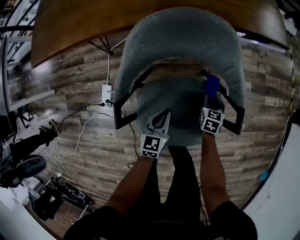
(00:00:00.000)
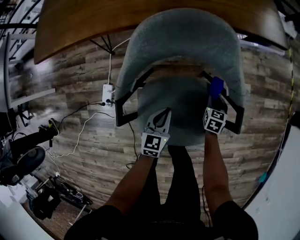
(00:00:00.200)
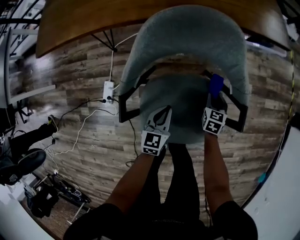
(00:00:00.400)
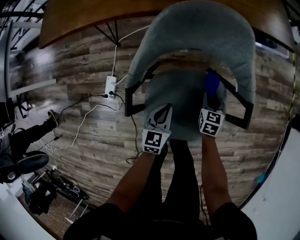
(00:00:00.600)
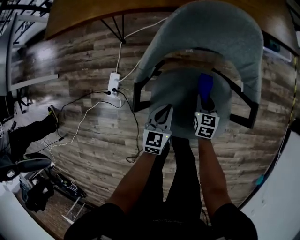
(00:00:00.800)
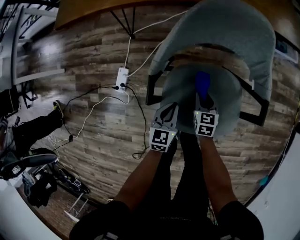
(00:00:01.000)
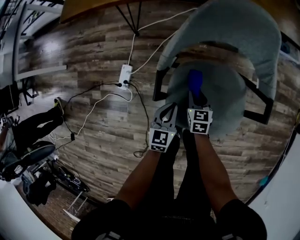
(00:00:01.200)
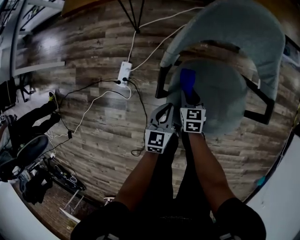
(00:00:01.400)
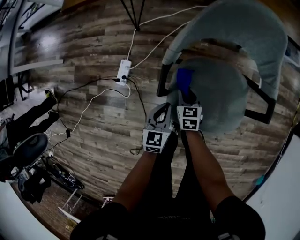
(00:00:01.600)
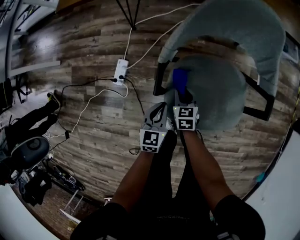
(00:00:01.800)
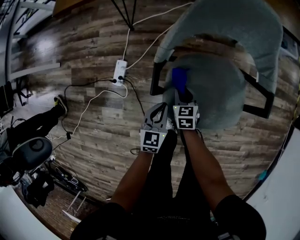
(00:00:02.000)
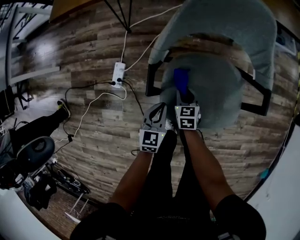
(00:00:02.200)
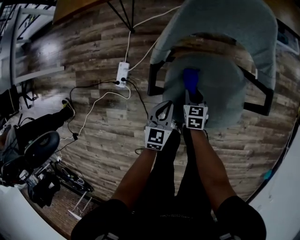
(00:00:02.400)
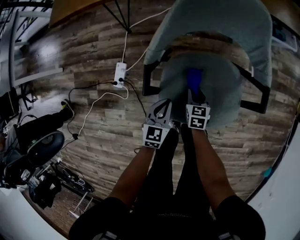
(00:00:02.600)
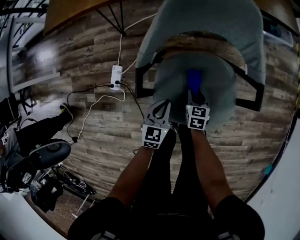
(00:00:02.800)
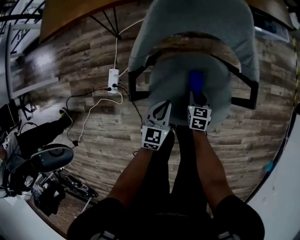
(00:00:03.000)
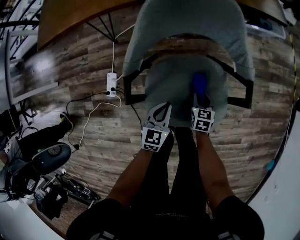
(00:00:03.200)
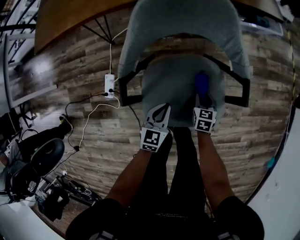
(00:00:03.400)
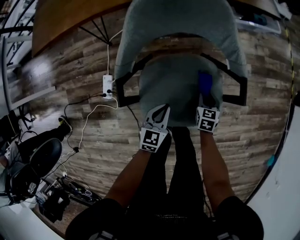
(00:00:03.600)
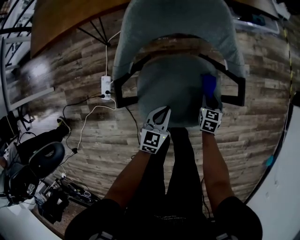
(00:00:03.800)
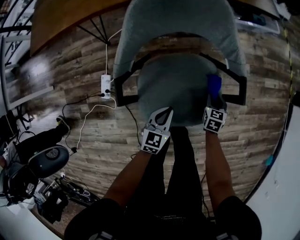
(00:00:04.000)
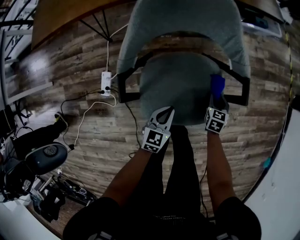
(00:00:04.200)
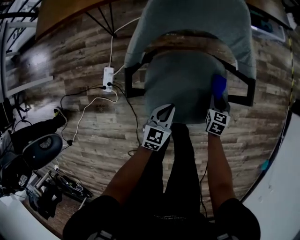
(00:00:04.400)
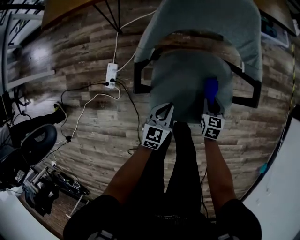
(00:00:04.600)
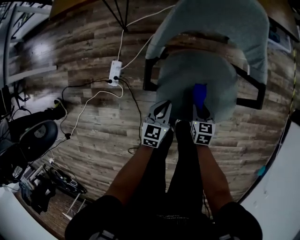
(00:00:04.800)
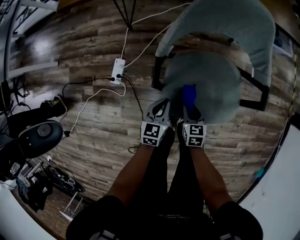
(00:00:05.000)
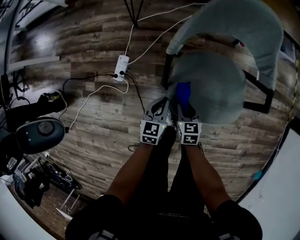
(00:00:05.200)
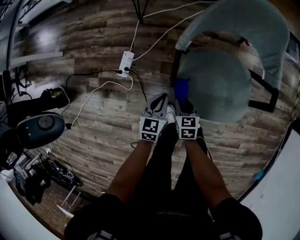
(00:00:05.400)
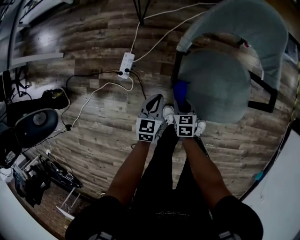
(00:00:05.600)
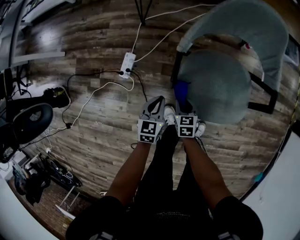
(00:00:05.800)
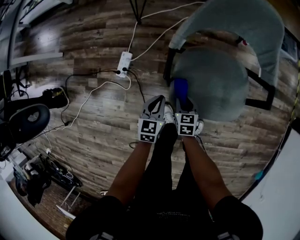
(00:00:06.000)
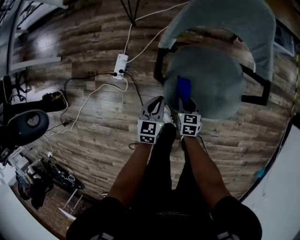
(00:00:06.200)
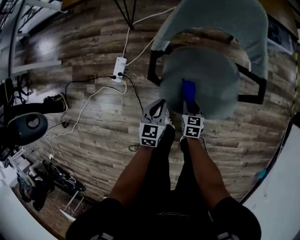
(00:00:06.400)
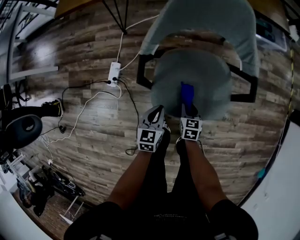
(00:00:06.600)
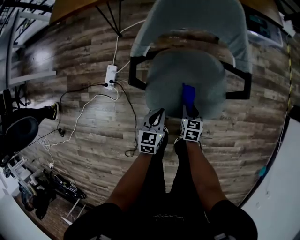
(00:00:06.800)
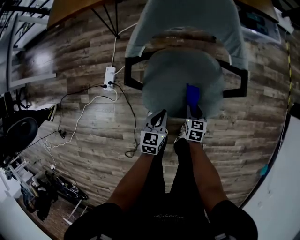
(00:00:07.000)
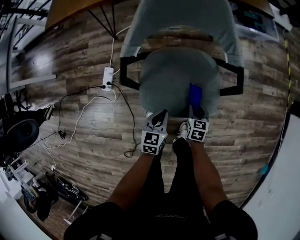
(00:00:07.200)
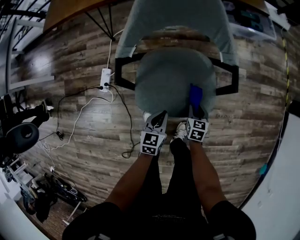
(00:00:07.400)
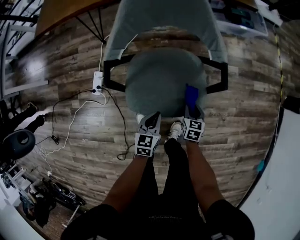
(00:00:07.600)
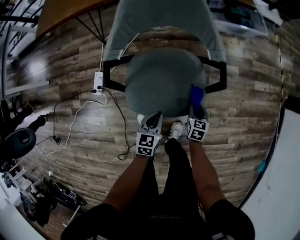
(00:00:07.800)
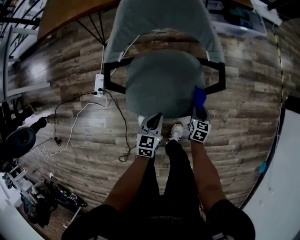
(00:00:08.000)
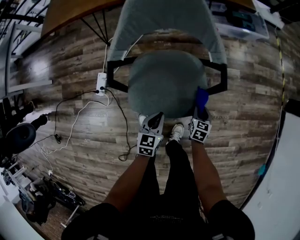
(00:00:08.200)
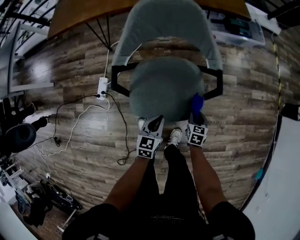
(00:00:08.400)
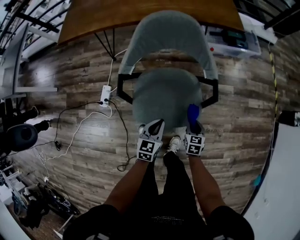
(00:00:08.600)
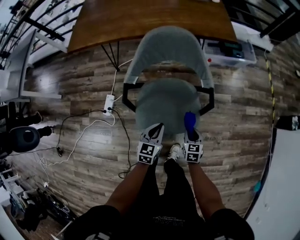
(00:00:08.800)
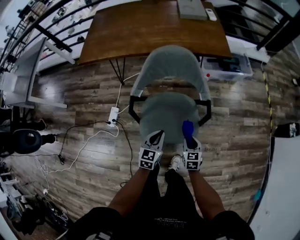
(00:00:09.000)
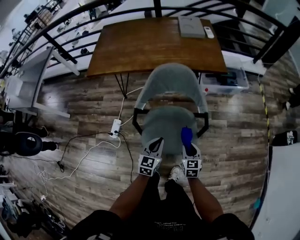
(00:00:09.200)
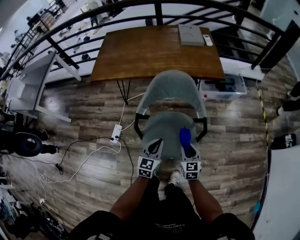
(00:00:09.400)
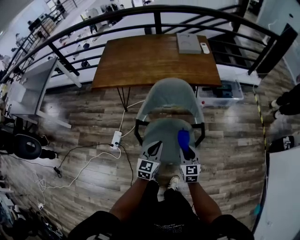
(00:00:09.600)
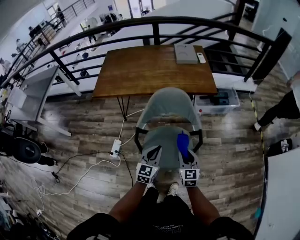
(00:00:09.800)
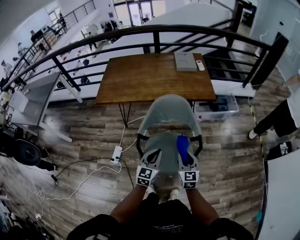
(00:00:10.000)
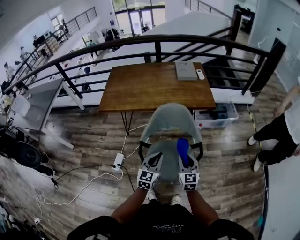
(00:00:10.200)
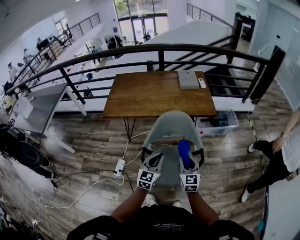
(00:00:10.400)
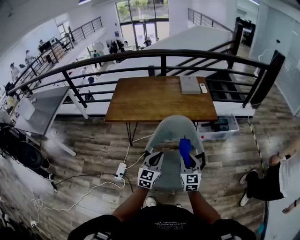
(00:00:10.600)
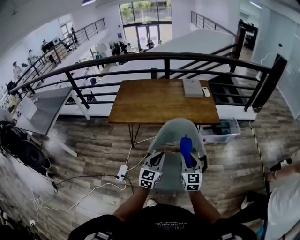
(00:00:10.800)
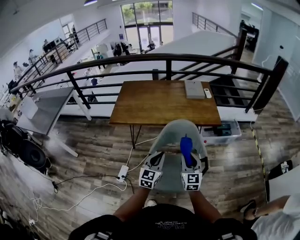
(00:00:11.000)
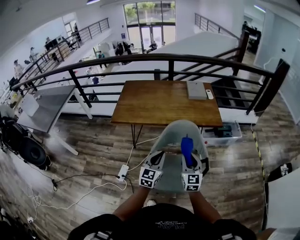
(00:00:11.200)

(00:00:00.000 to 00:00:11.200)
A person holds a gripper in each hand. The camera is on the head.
00:00:00.000 - 00:00:01.600: The right gripper travels to the left and backward by roughly 30 cm, and swivels roughly 20 degrees; the left gripper goes roughly 20 cm to the left and backward.
00:00:01.600 - 00:00:03.200: The left gripper heads to the right, covering approximately 10 cm. The right gripper travels to the right by approximately 20 cm.
00:00:03.200 - 00:00:04.800: The left gripper is displaced backward and to the left by approximately 10 cm. The right gripper moves backward, some 10 cm, and travels to the right and back again, roughly 10 cm each way.
00:00:04.800 - 00:00:06.400: The right gripper reaches approximately 20 cm to the left, then returns; the left gripper goes to the left and returns, roughly 15 cm each way.
00:00:06.400 - 00:00:08.000: The two grippers go roughly 20 cm to the right.
00:00:08.000 - 00:00:09.600: The two grippers go about 30 cm upward. The left gripper turns by roughly 20 degrees. Meanwhile the right gripper changes its angle by about 30 degrees.
00:00:09.600 - 00:00:11.200: Both grippers travel together upward and to the left, some 20 cm. The right gripper rotates some 20 degrees.

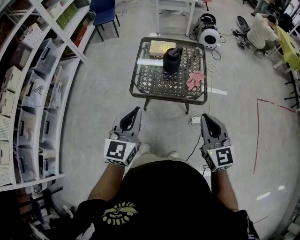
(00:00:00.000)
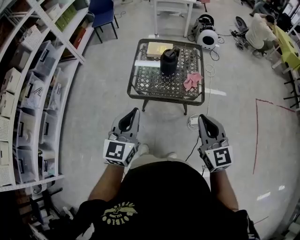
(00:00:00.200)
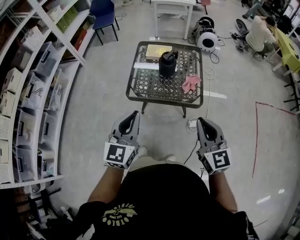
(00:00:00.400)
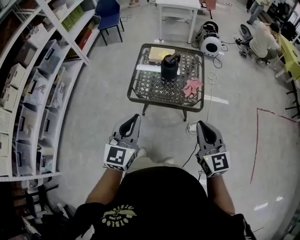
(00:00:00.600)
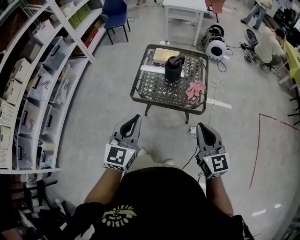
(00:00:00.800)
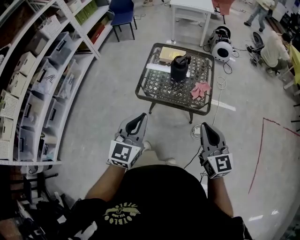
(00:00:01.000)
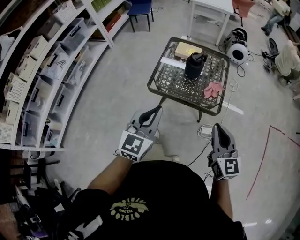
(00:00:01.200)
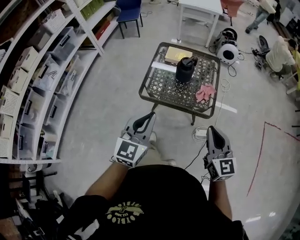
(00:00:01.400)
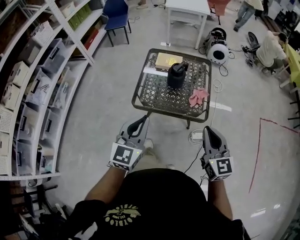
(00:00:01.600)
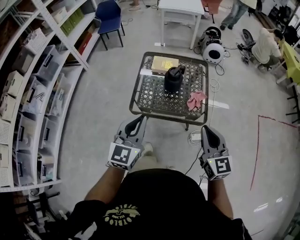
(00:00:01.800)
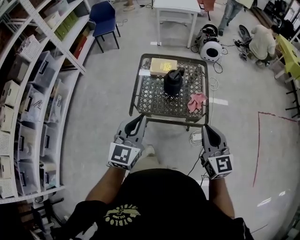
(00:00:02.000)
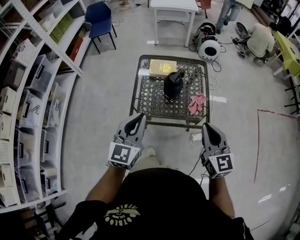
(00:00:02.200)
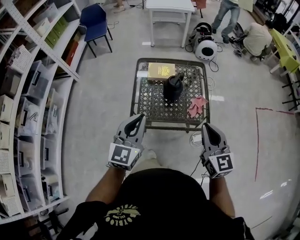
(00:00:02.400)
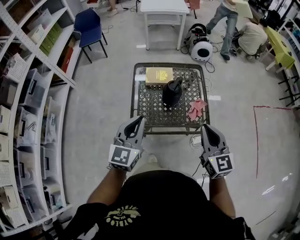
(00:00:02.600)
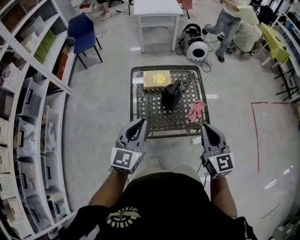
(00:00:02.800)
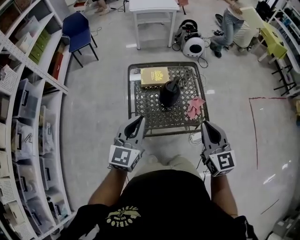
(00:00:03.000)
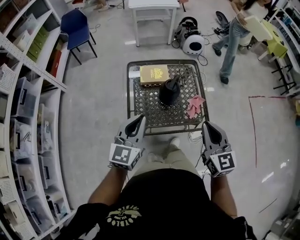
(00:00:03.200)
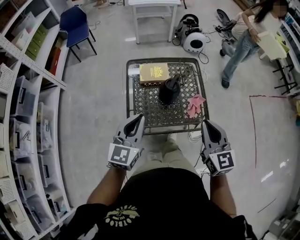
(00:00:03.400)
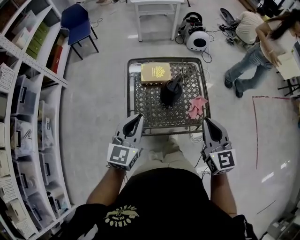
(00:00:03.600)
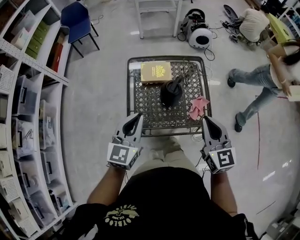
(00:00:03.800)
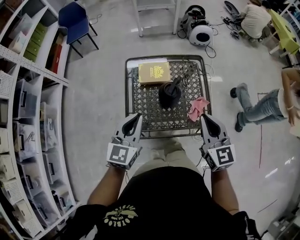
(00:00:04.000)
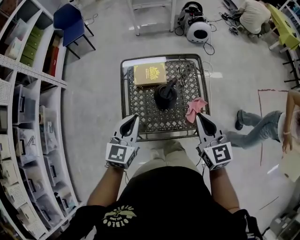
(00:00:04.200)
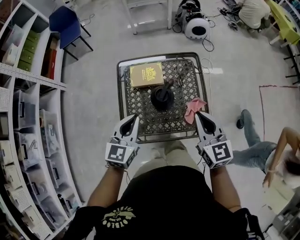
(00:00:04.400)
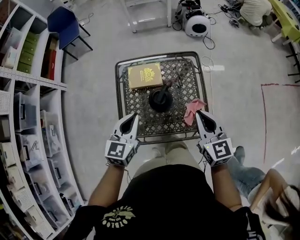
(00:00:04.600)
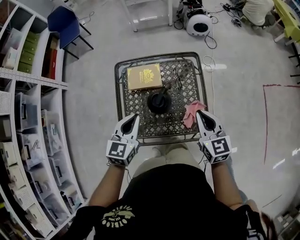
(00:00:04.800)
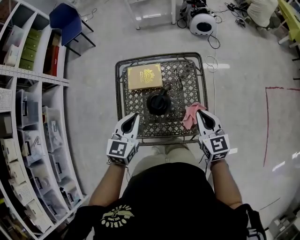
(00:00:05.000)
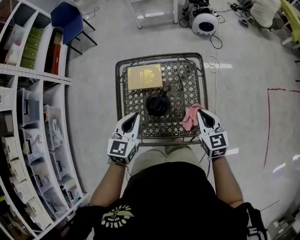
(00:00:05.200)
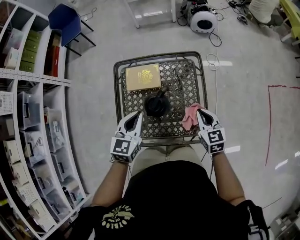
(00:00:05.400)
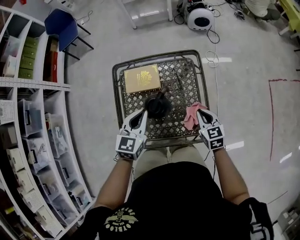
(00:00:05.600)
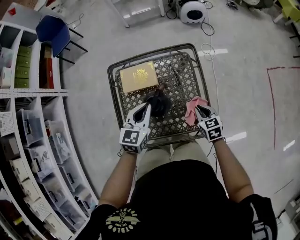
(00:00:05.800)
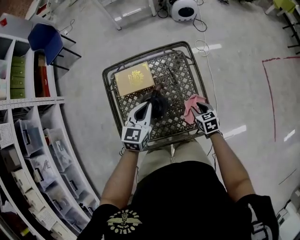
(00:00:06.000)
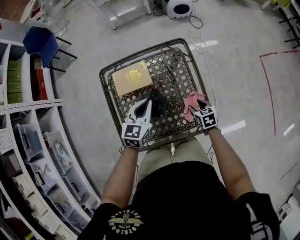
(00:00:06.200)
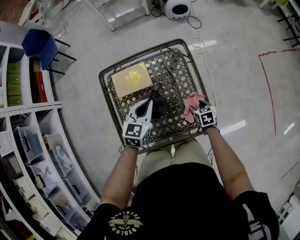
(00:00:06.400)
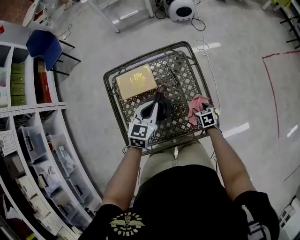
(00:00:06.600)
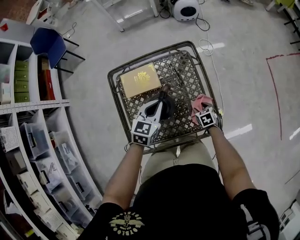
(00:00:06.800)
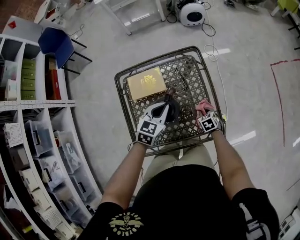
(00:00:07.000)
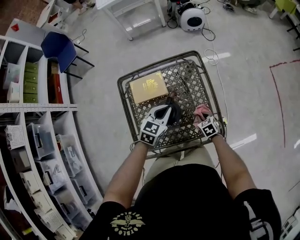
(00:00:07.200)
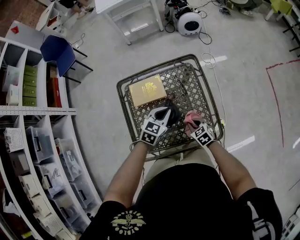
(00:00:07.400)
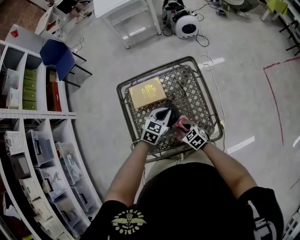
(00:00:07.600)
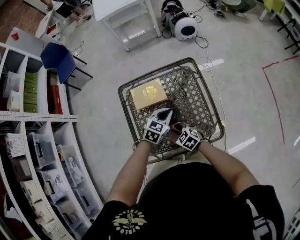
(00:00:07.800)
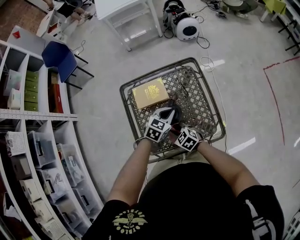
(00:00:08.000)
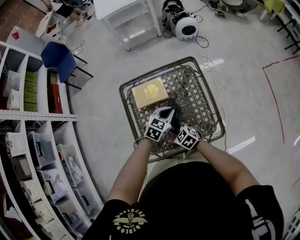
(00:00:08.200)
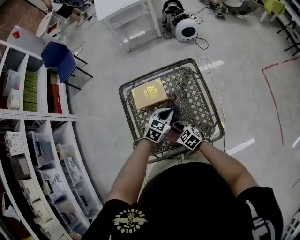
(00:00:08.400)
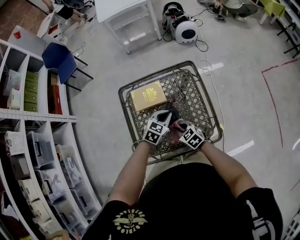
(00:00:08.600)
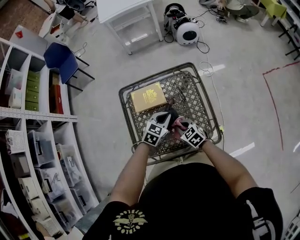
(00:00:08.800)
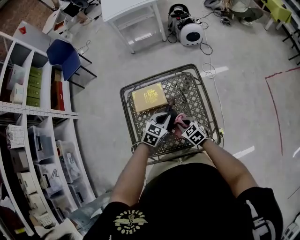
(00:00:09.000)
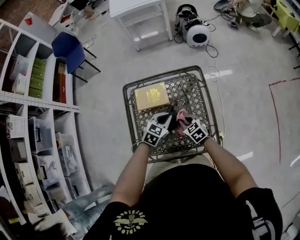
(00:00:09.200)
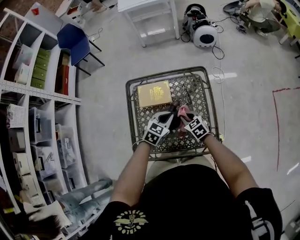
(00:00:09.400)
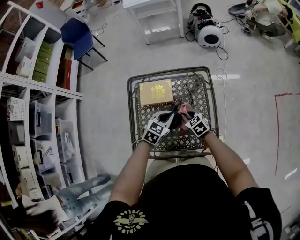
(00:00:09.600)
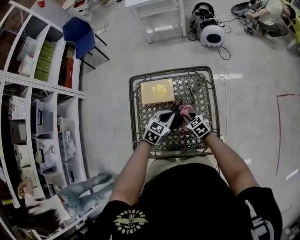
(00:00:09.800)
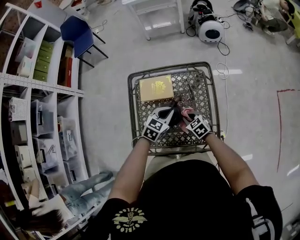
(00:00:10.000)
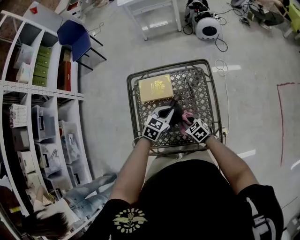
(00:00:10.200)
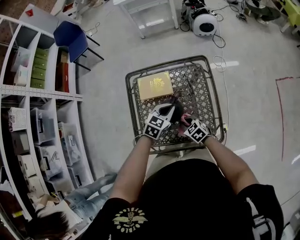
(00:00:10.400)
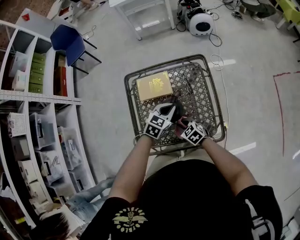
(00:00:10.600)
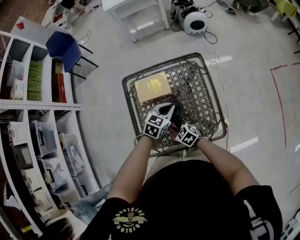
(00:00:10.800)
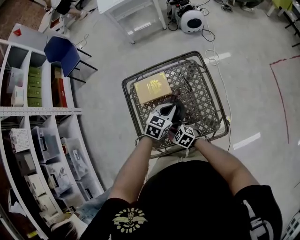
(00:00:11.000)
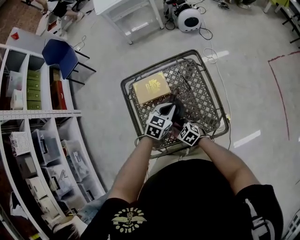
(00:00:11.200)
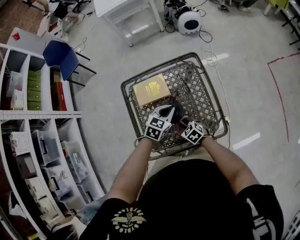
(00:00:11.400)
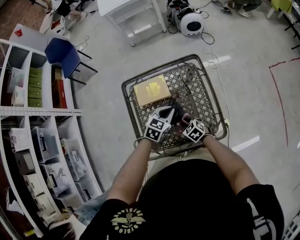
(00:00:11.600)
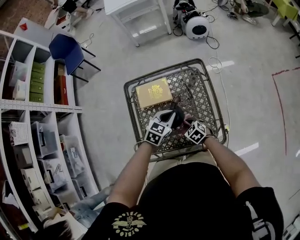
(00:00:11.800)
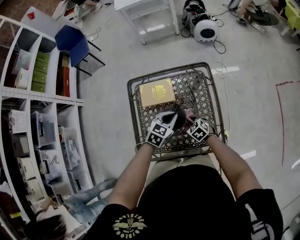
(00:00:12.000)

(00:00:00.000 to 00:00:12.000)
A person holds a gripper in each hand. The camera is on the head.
00:00:00.000 - 00:00:01.600: The right gripper ends up about 5 cm from where it was. The left gripper ends up some 5 cm from where it was.
00:00:01.600 - 00:00:03.000: The grippers both shift forward and to the left by roughly 20 cm.
00:00:03.000 - 00:00:04.400: Both grippers move forward and downward, roughly 20 cm.
00:00:04.400 - 00:00:06.000: The right gripper heads downward, covering some 30 cm, tilts its fingers some 30 degrees downward, and opens up. The left gripper moves downward, forward and to the right, some 20 cm.
00:00:06.000 - 00:00:07.600: The left gripper swivels some 20 degrees. Meanwhile the right gripper travels to the left by about 15 cm, changes its angle by approximately 20 degrees, and opens, then closes again.
00:00:07.600 - 00:00:09.000: The right gripper travels to the left and back again, about 5 cm each way.
00:00:09.000 - 00:00:10.400: The right gripper reaches about 5 cm forward, then returns.
00:00:10.400 - 00:00:12.000: The right gripper moves approximately 10 cm to the left and comes back.
